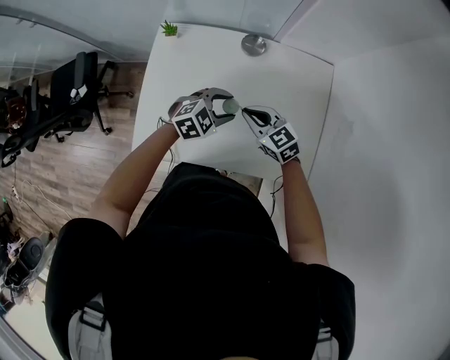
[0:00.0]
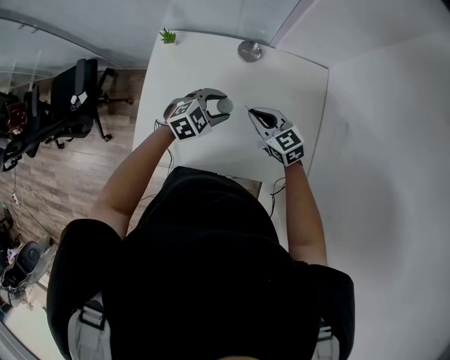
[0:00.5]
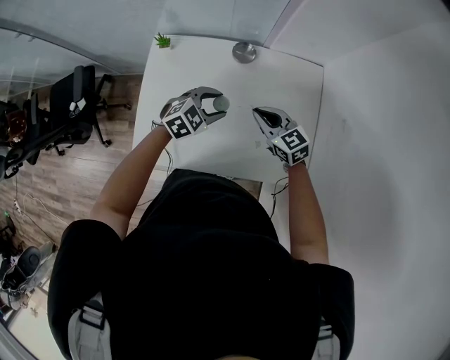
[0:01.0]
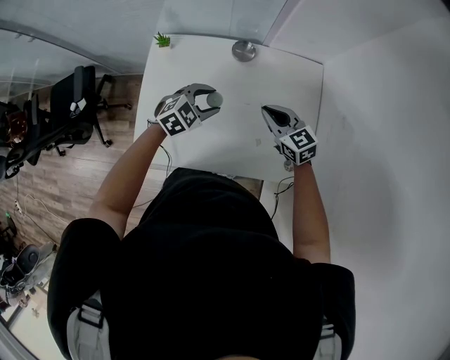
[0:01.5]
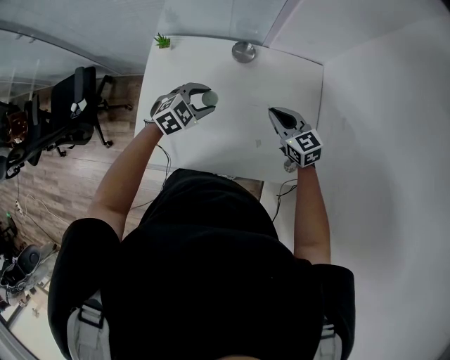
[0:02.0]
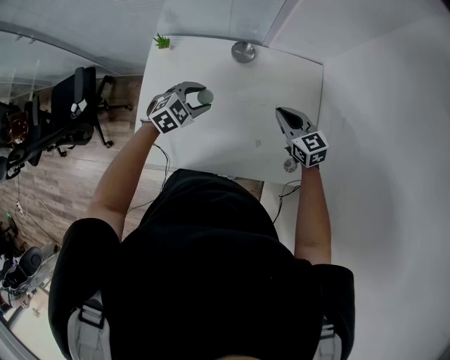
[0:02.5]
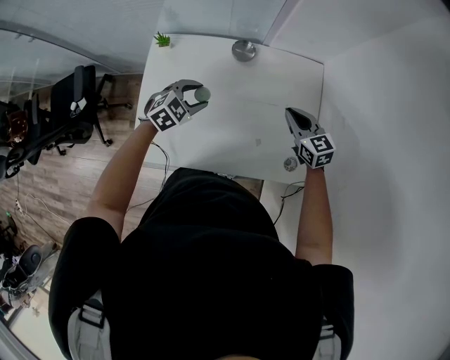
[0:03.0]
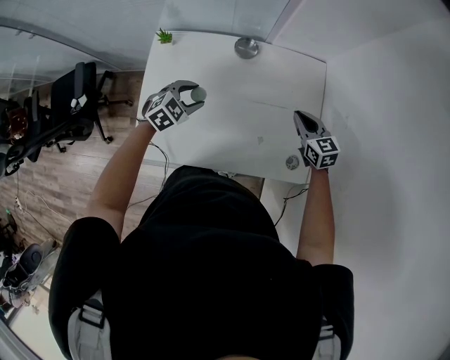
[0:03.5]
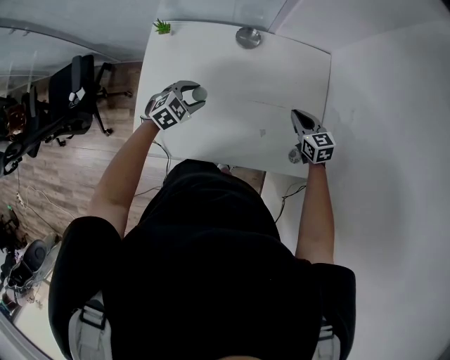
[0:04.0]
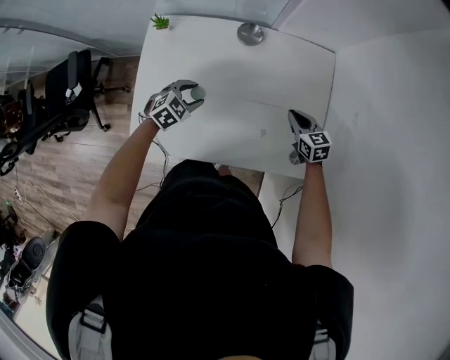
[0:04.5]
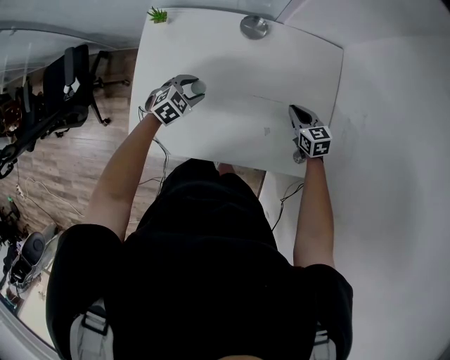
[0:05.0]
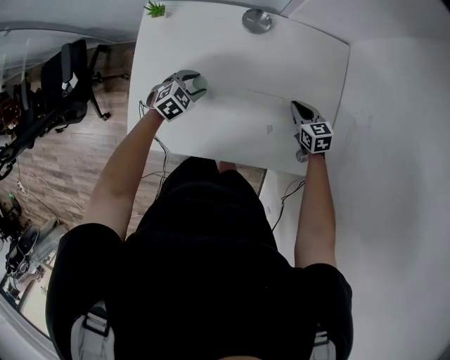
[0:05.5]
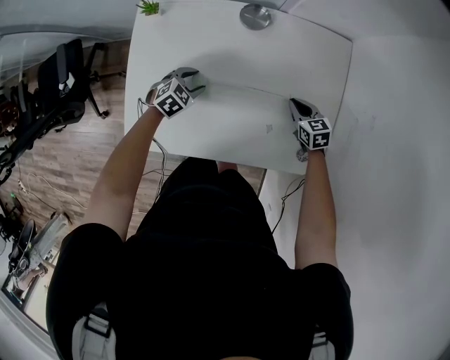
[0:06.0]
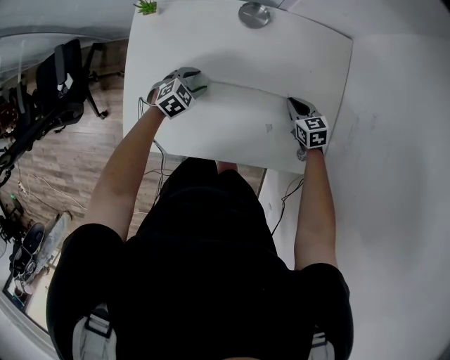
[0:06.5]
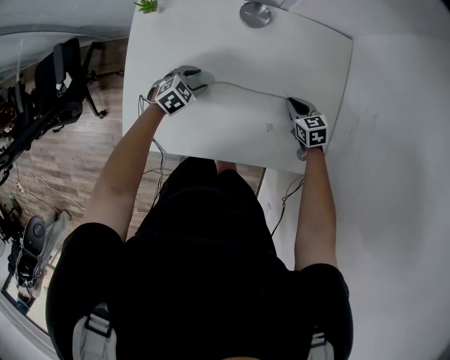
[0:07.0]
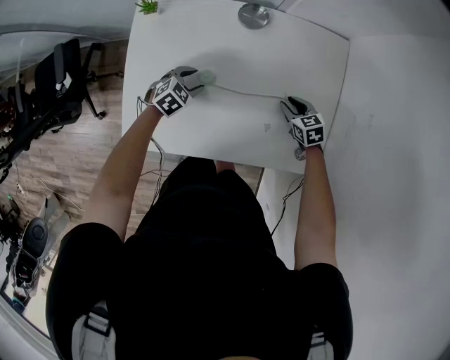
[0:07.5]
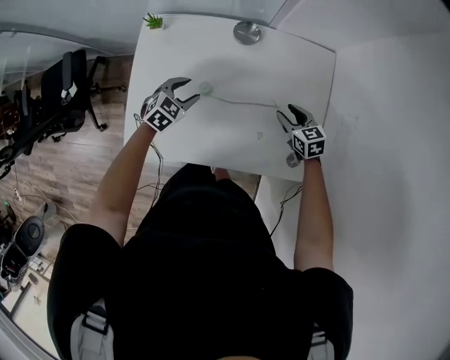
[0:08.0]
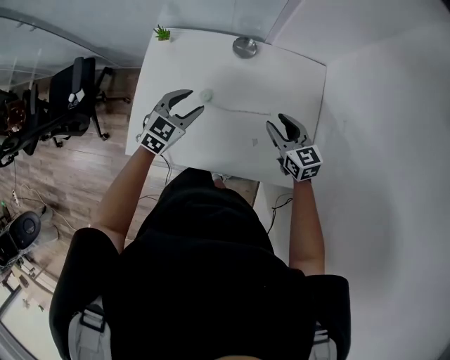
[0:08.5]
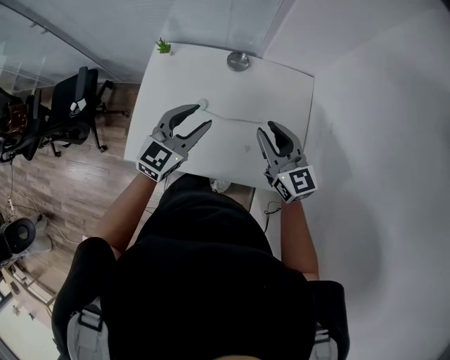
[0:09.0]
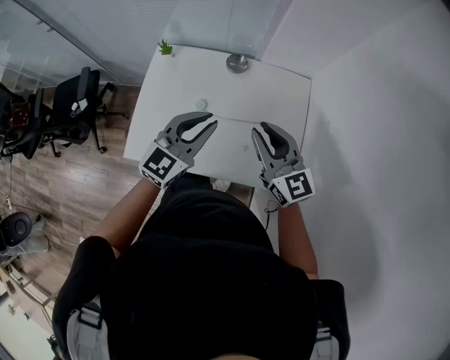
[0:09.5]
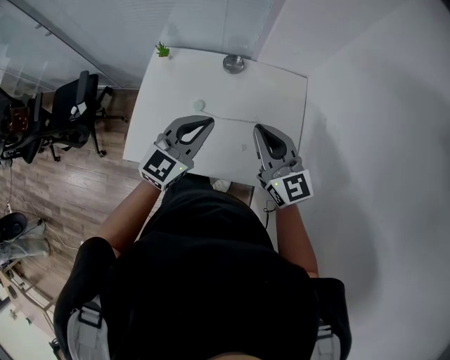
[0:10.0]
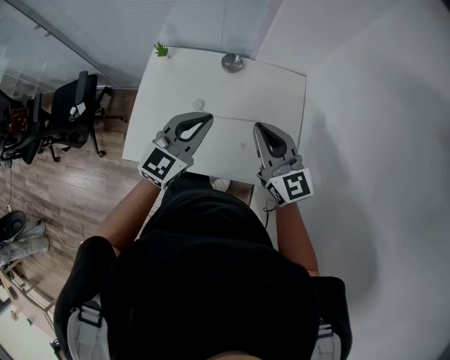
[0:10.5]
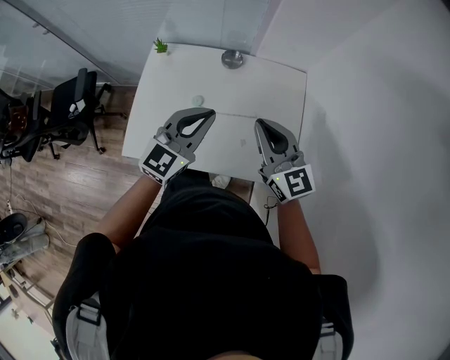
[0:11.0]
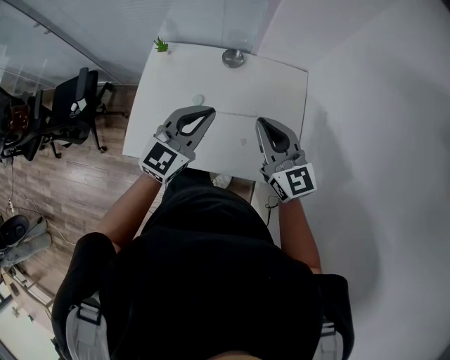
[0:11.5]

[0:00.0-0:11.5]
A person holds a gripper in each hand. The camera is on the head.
0:00.0 to 0:02.0: The left gripper shifts roughly 5 cm to the left, while the right gripper moves to the right, some 10 cm.
0:02.0 to 0:04.0: The left gripper moves downward, approximately 5 cm. The right gripper travels to the right and downward by approximately 15 cm.
0:04.0 to 0:06.0: Both grippers move downward, about 10 cm.
0:06.0 to 0:07.5: The grippers stay close to where they were, moving slightly.
0:07.5 to 0:09.5: Both grippers move upward, some 40 cm. The left gripper tips its fingers upward by roughly 50 degrees, and closes up. The right gripper tips its fingers upward by approximately 50 degrees.
0:09.5 to 0:11.5: The grippers stay close to where they were, moving slightly.

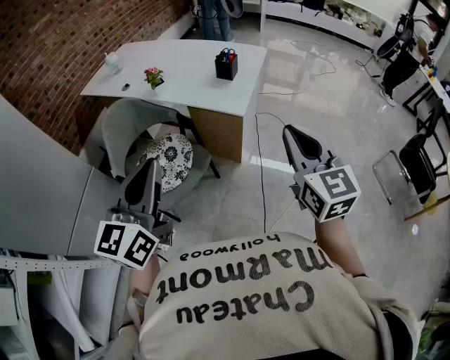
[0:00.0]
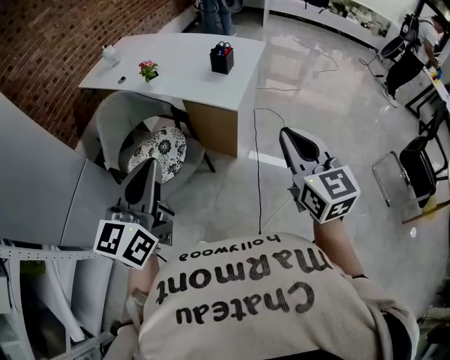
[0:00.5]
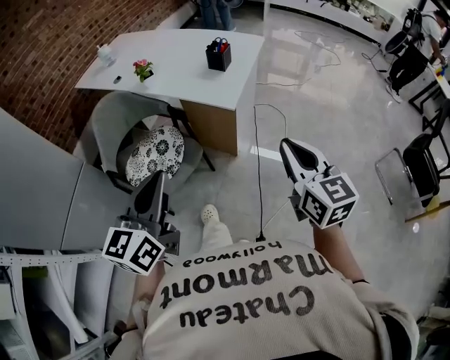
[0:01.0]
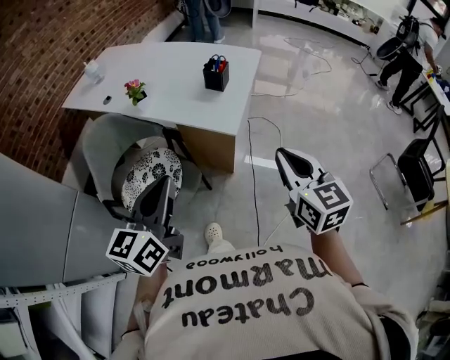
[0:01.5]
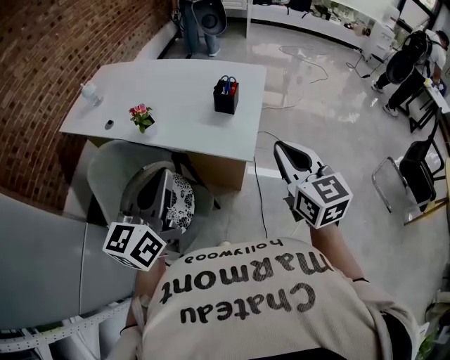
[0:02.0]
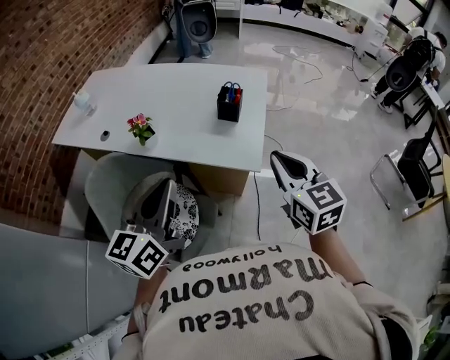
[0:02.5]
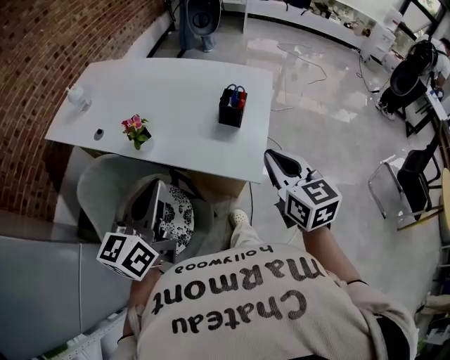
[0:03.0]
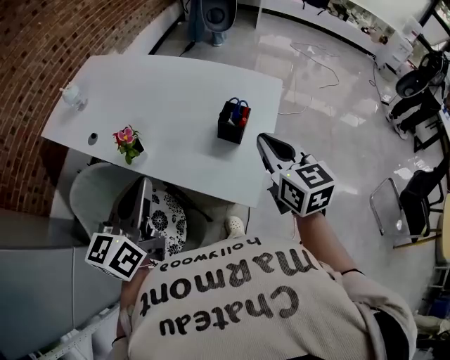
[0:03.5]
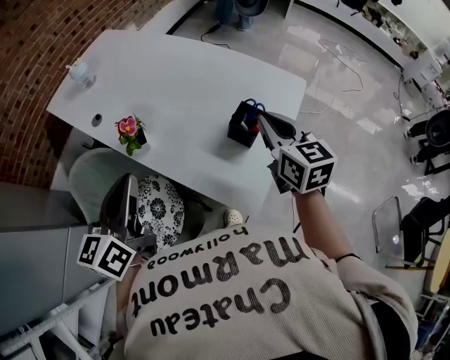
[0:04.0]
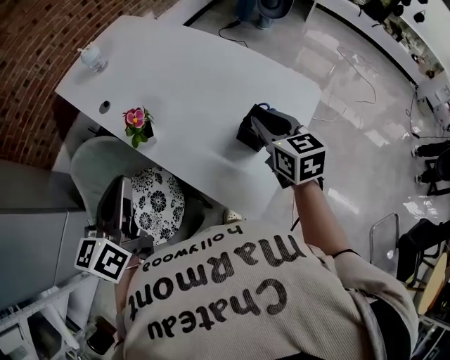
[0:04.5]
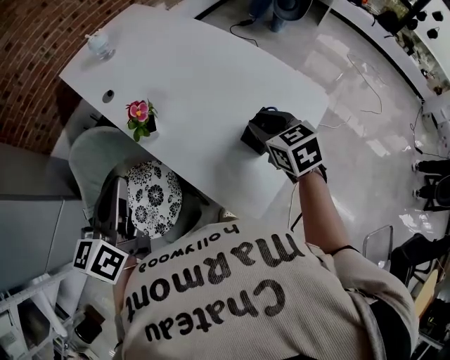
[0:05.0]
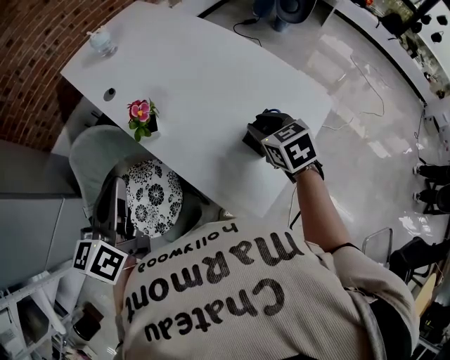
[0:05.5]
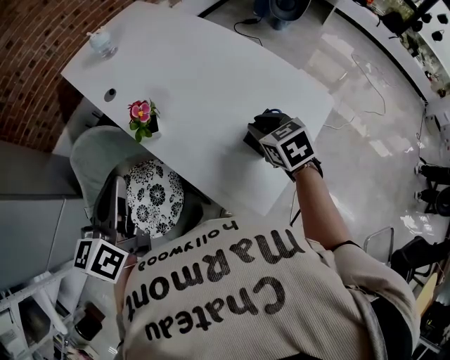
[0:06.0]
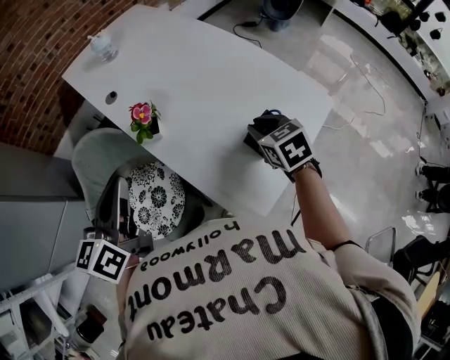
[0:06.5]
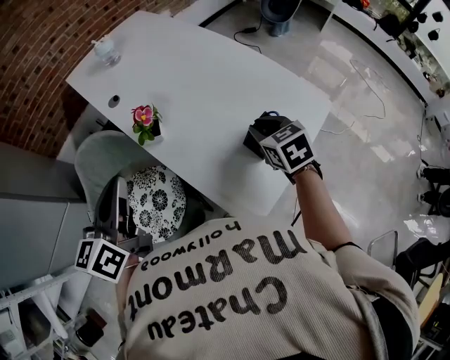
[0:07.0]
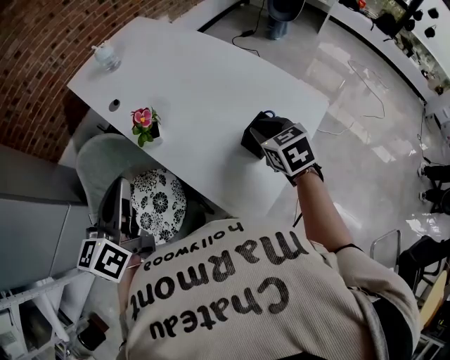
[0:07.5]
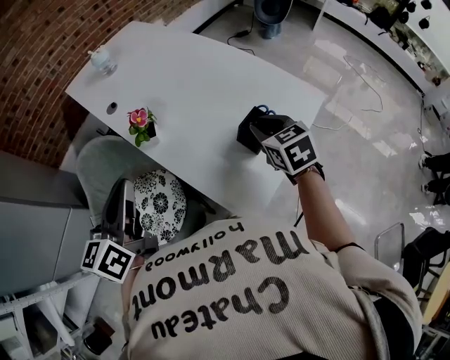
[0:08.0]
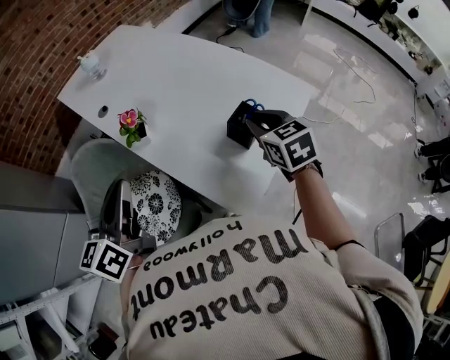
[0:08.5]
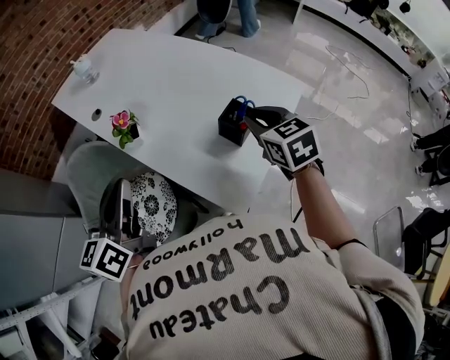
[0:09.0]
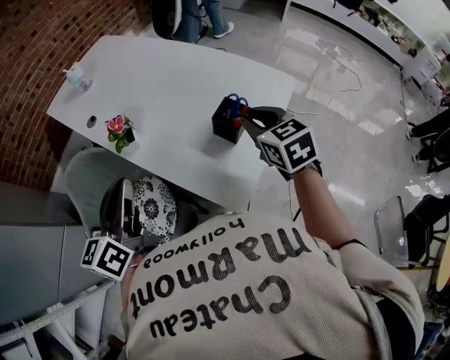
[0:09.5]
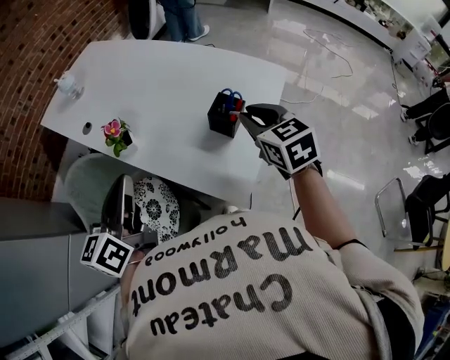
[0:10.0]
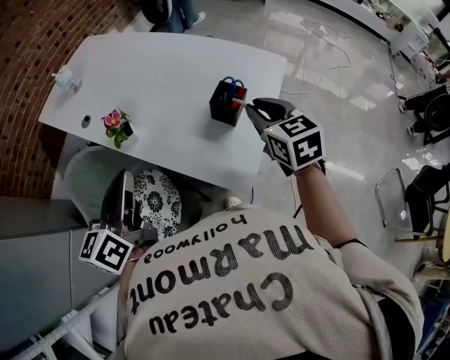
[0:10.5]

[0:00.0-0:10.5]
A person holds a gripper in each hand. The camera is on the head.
0:00.0 to 0:02.0: Both grippers travel together forward, approximately 25 cm.
0:02.0 to 0:04.0: The right gripper goes approximately 35 cm forward; the left gripper shifts about 20 cm forward, and turns by some 20 degrees.
0:04.0 to 0:06.5: The right gripper heads downward and forward, covering some 15 cm, and rotates about 40 degrees.
0:06.5 to 0:08.5: The left gripper moves some 5 cm. Meanwhile the right gripper goes about 5 cm backward and upward.
0:08.5 to 0:10.5: The right gripper travels backward by roughly 5 cm.

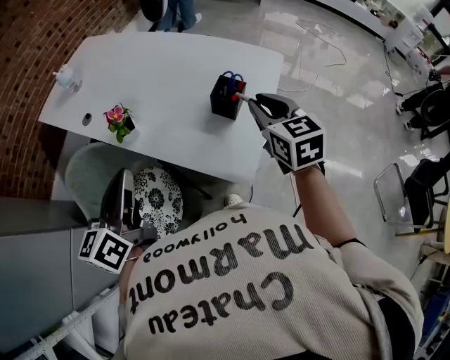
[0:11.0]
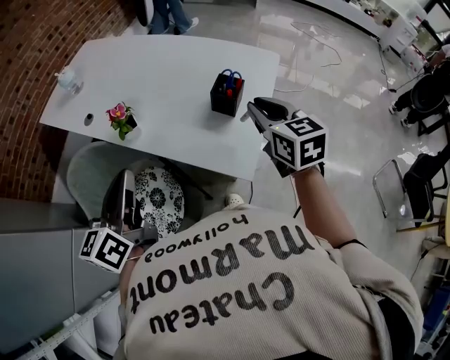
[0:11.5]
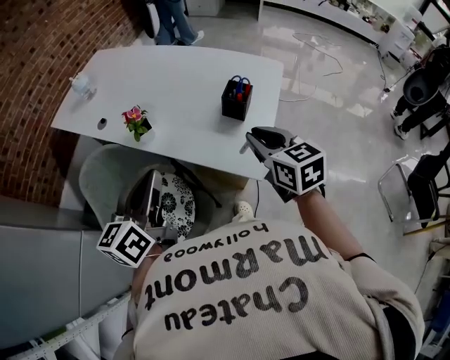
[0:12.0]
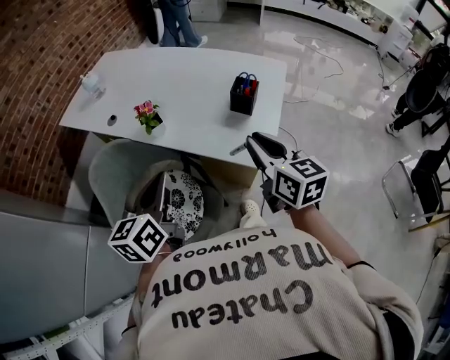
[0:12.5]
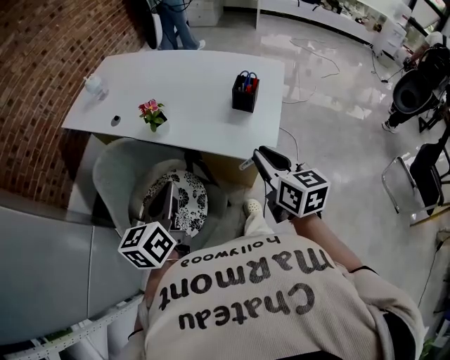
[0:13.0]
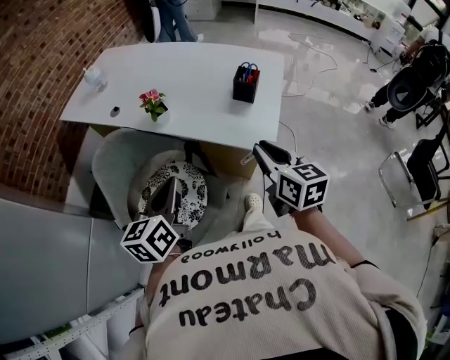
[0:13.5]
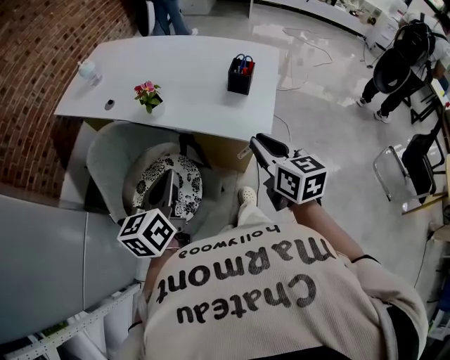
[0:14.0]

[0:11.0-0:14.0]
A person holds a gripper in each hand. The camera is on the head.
0:11.0 to 0:12.5: The left gripper heads backward, covering roughly 10 cm. Meanwhile the right gripper goes approximately 20 cm backward and to the left, and rotates some 20 degrees.
0:12.5 to 0:14.0: The two grippers go some 5 cm backward.

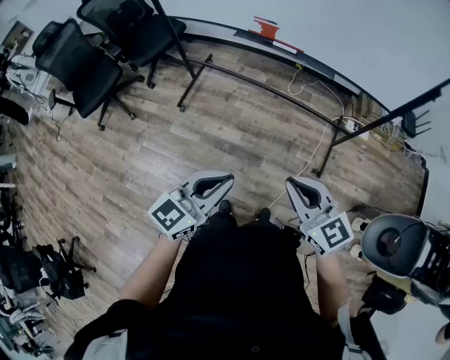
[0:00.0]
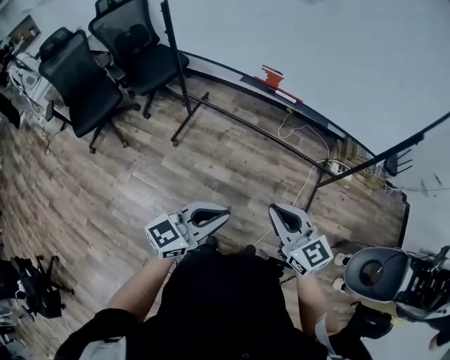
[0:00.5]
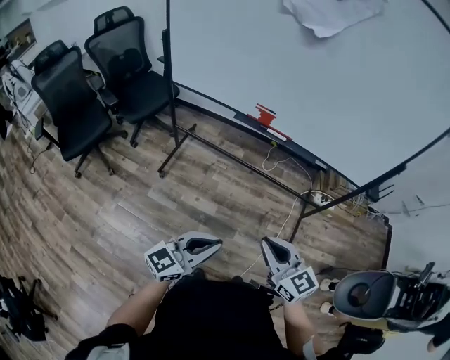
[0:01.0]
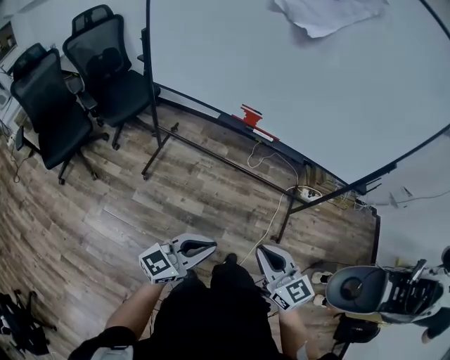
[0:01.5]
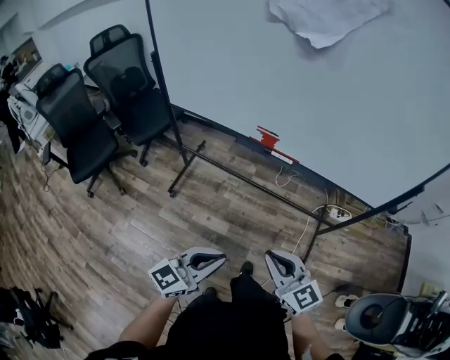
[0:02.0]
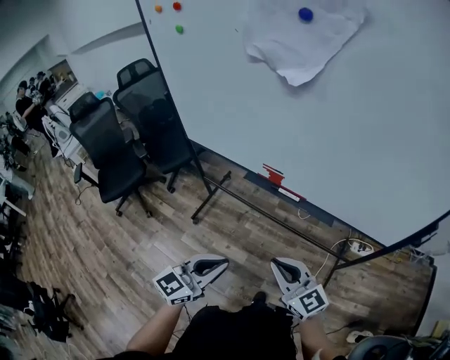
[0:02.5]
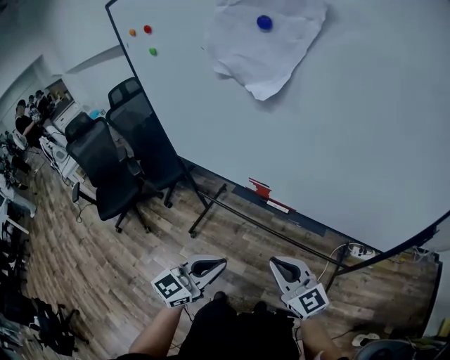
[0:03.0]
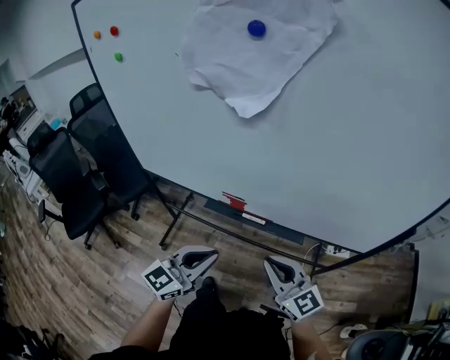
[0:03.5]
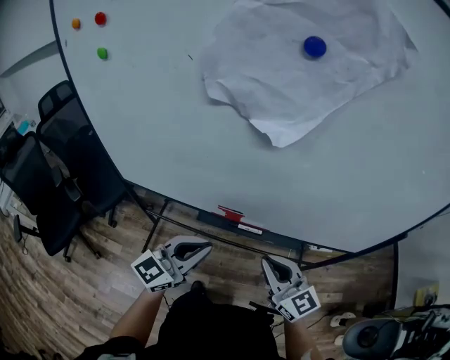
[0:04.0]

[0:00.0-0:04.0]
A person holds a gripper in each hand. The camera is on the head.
0:00.0 to 0:02.0: Both grippers move forward and to the left, about 15 cm.
0:02.0 to 0:04.0: Both grippers travel together forward, about 30 cm.
